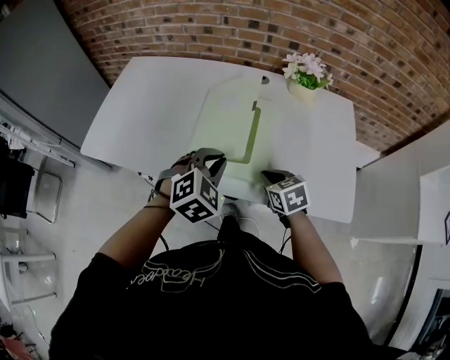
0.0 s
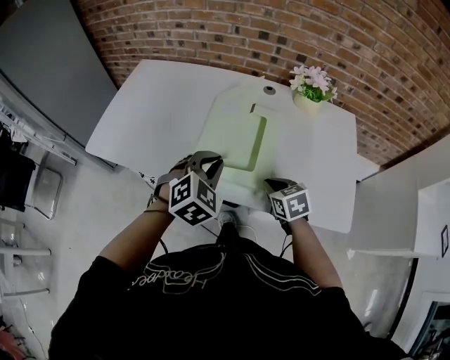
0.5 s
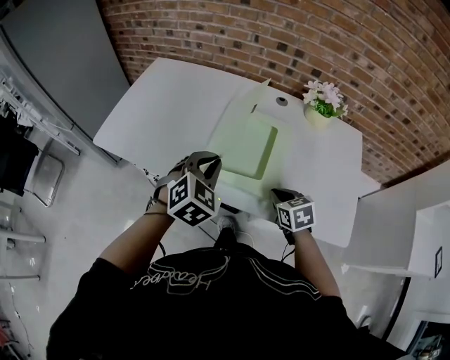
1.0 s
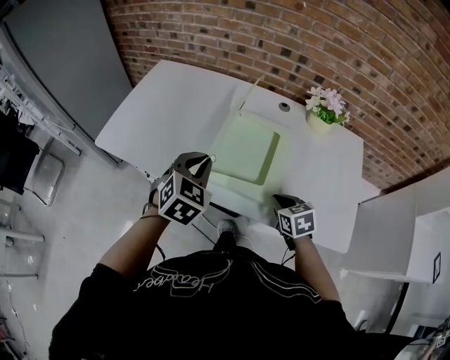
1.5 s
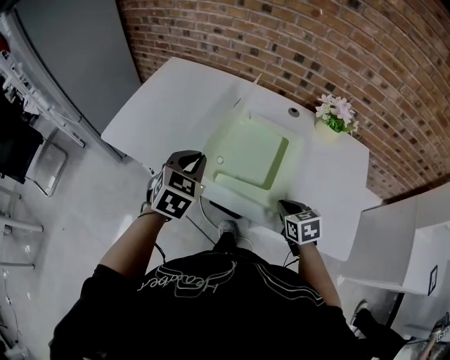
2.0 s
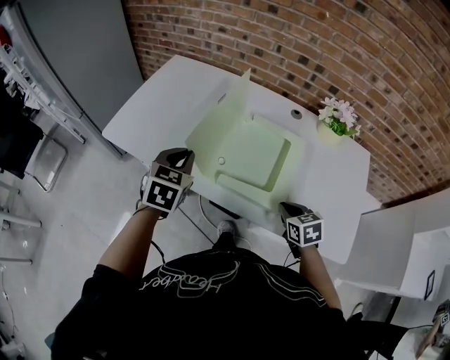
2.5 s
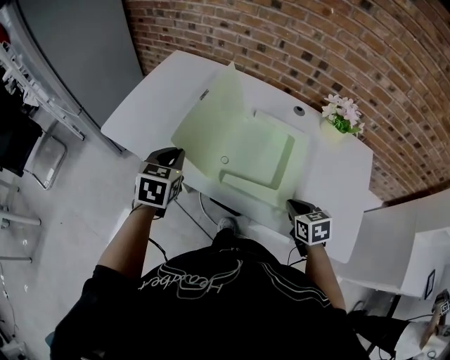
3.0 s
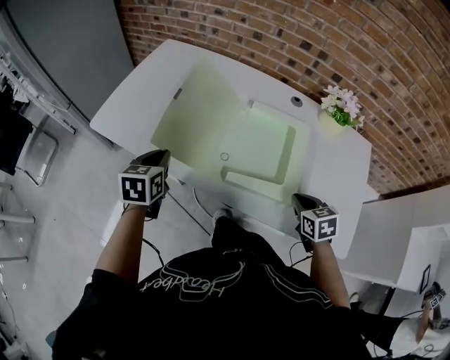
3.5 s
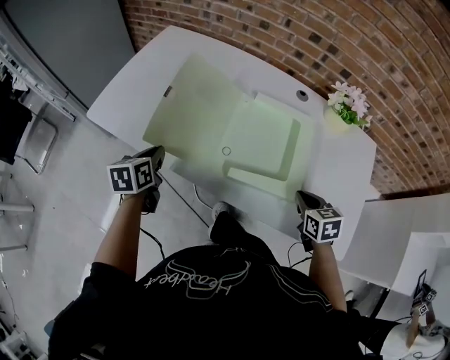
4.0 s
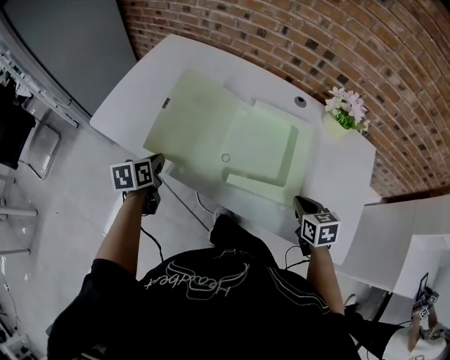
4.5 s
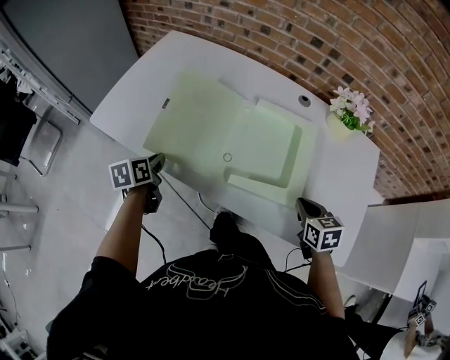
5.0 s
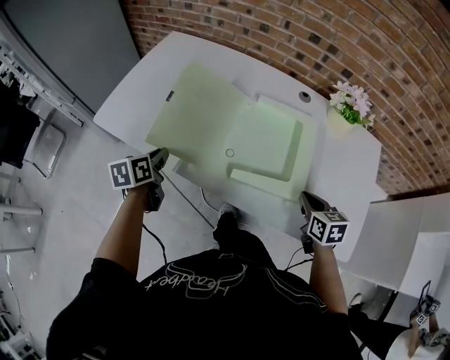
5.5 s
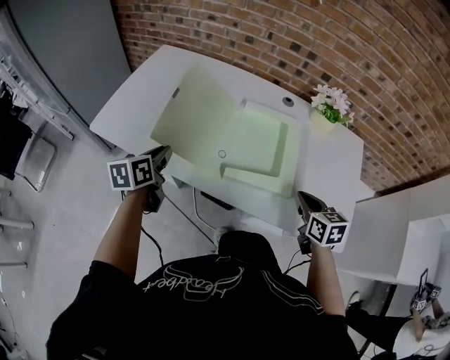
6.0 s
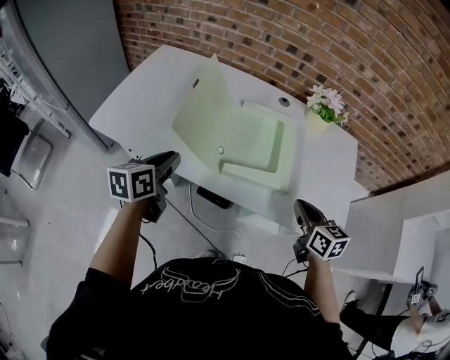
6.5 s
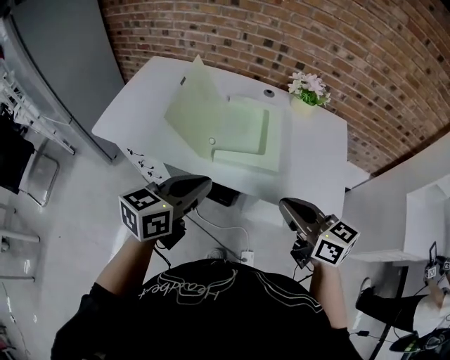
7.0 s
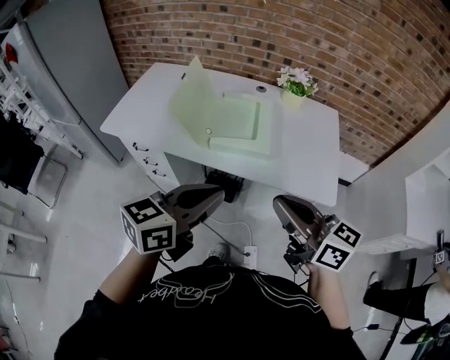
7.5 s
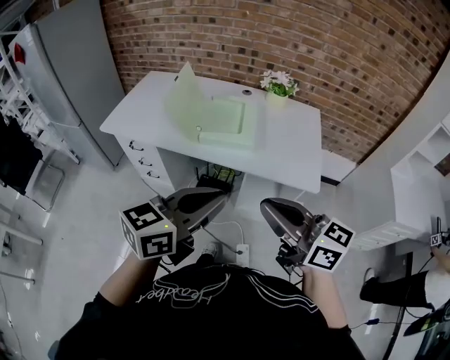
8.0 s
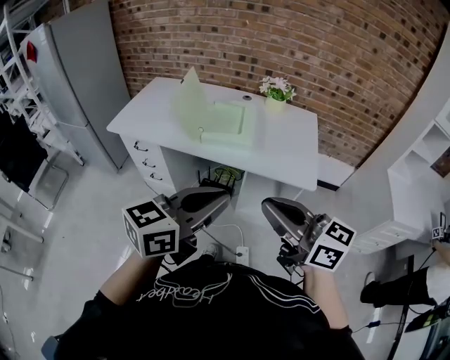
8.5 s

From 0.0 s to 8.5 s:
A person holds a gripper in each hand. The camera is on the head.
From 0.0 s to 2.0 s: The left gripper travels to the left by about 15 cm, and turns by approximately 40 degrees.
From 2.0 s to 4.0 s: The right gripper travels to the right by some 5 cm; the left gripper travels to the left and downward by approximately 15 cm, and twists some 40 degrees counterclockwise, seen from behind.
From 4.0 s to 6.5 s: The right gripper shifts approximately 10 cm upward and backward, and changes its angle by some 30 degrees. Meanwhile the left gripper shifts roughly 10 cm upward and to the right, and swivels some 20 degrees.
From 6.5 s to 8.5 s: The left gripper goes about 50 cm backward, to the right and upward, and turns by roughly 40 degrees, while the right gripper is displaced backward and upward by about 40 cm, and tilts its fingers about 30 degrees upward.

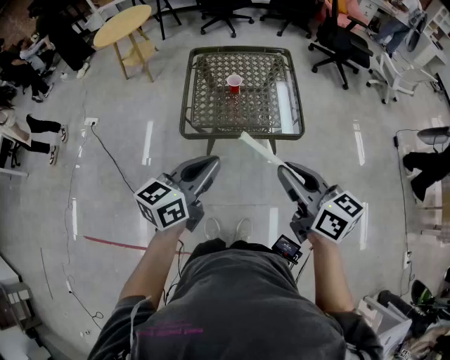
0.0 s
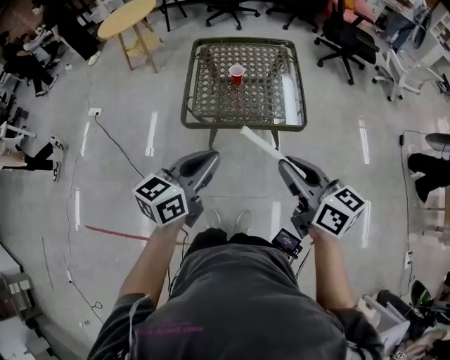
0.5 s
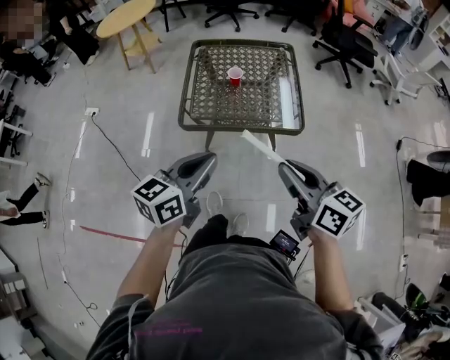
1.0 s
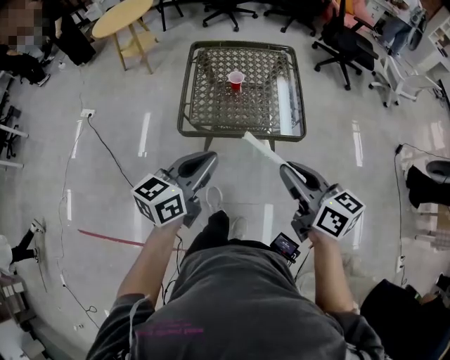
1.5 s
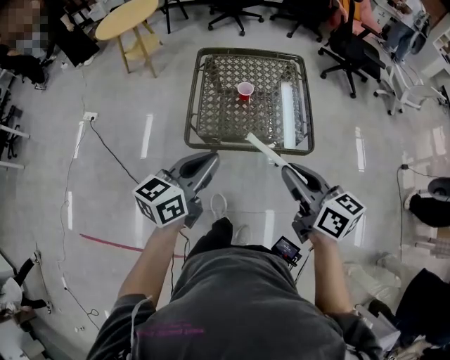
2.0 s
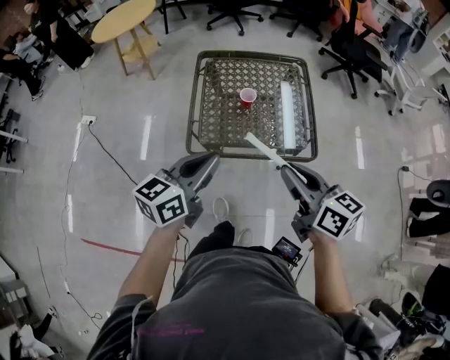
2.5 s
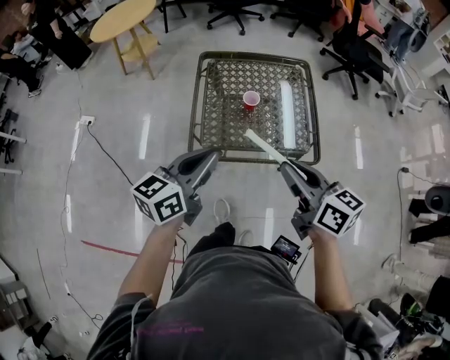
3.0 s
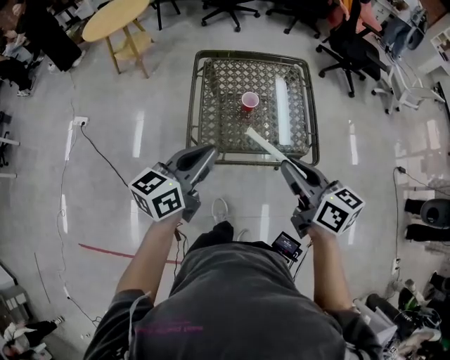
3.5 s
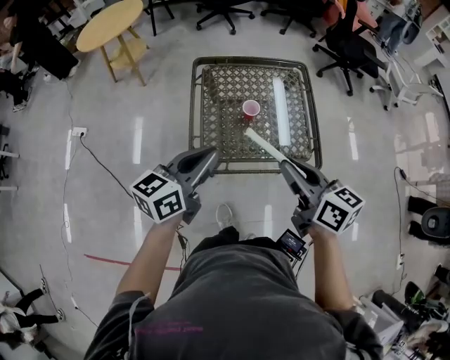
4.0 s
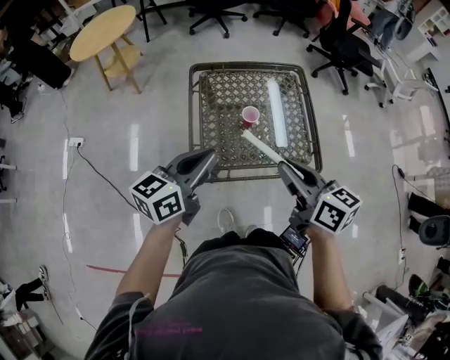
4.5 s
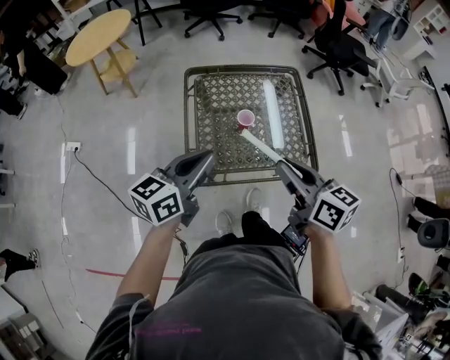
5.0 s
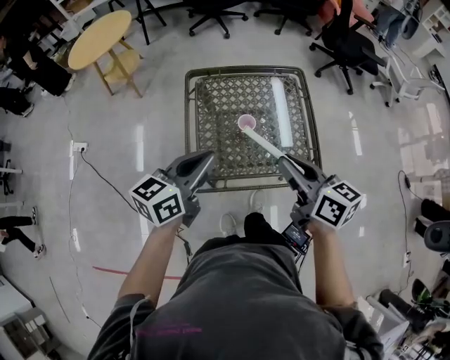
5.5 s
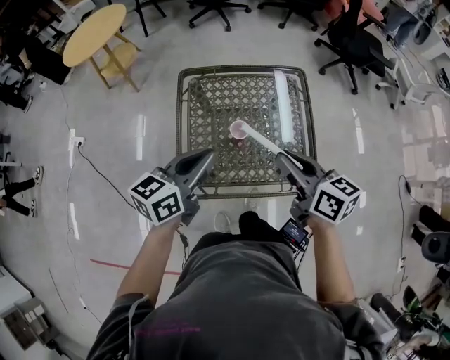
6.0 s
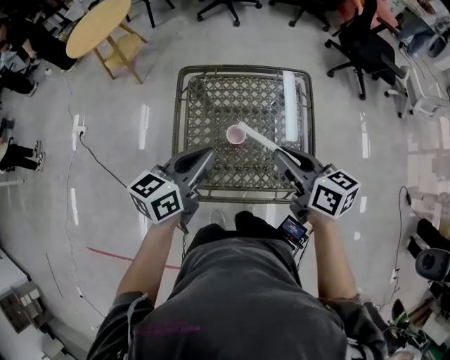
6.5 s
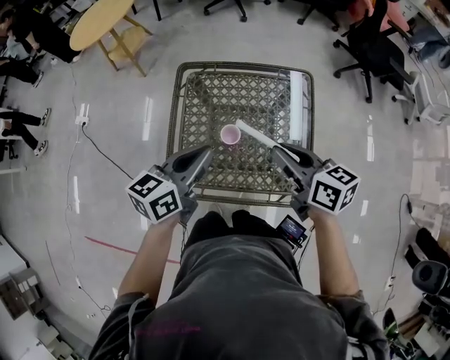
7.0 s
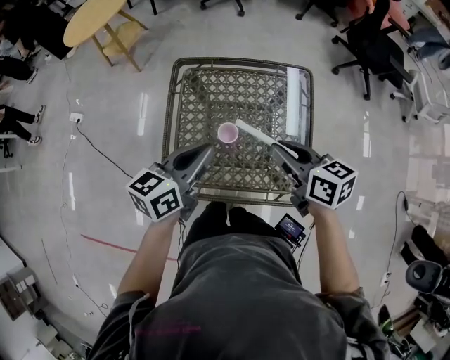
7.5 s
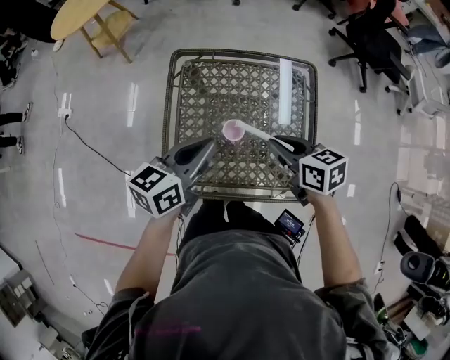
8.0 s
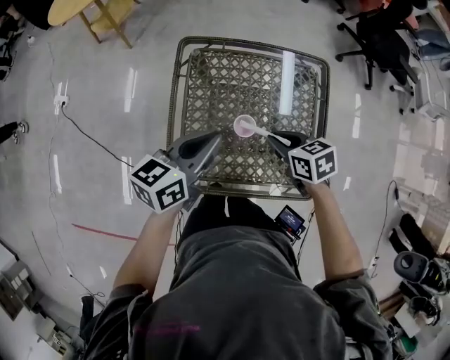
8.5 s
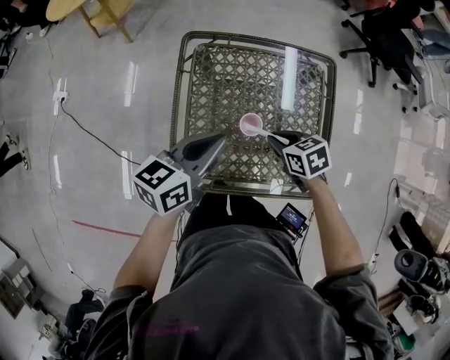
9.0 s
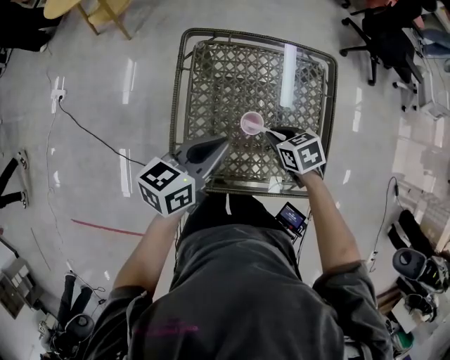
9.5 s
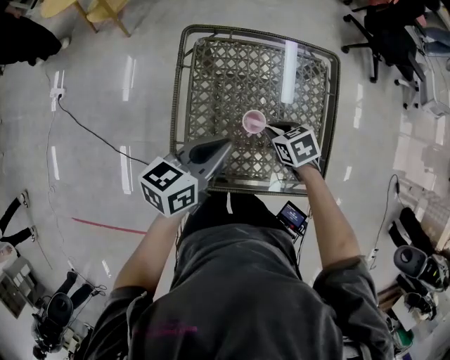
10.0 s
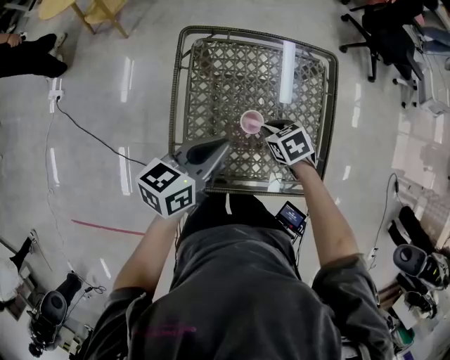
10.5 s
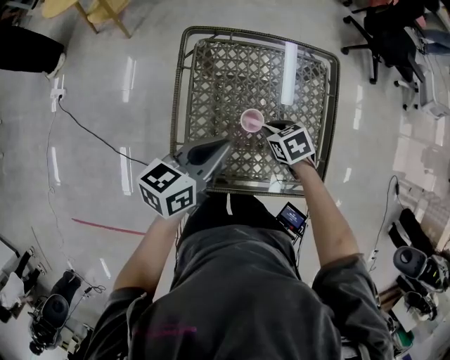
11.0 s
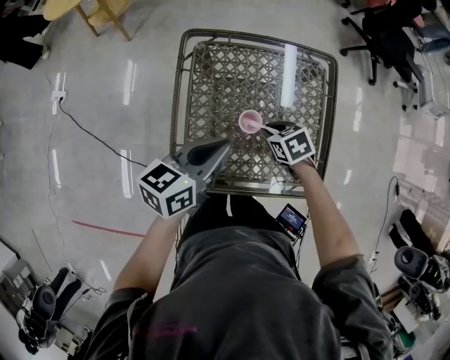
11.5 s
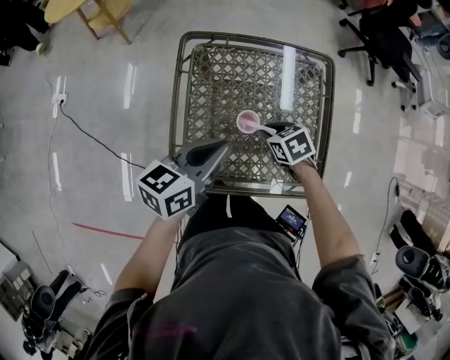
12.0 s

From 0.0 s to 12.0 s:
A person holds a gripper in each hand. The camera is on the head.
From 0.0 s to 2.0 s: The two grippers go roughly 10 cm forward.
From 2.0 s to 4.0 s: Both grippers move forward and to the left, some 15 cm.
From 4.0 s to 6.0 s: Both grippers move forward, about 15 cm.
From 6.0 s to 8.0 s: The right gripper is displaced downward and forward by some 15 cm, and changes its angle by roughly 20 degrees. Meanwhile the left gripper moves forward and downward, roughly 10 cm.
From 8.0 s to 10.0 s: The left gripper shifts by roughly 5 cm. The right gripper moves downward, about 15 cm, and swivels approximately 30 degrees.
From 10.0 s to 12.0 s: There are only small adjustments of the grippers.

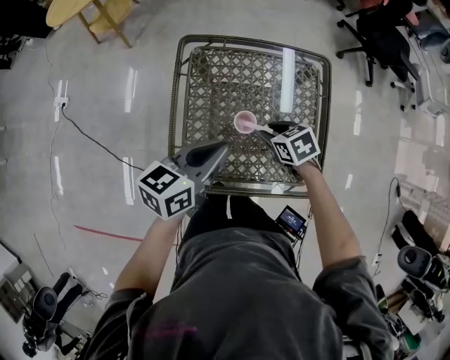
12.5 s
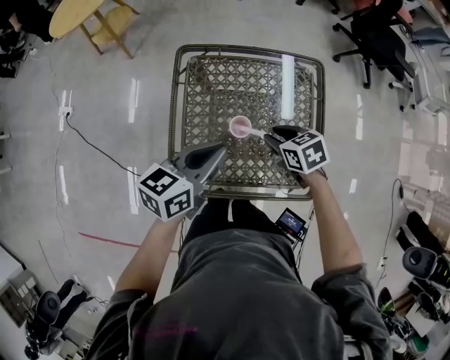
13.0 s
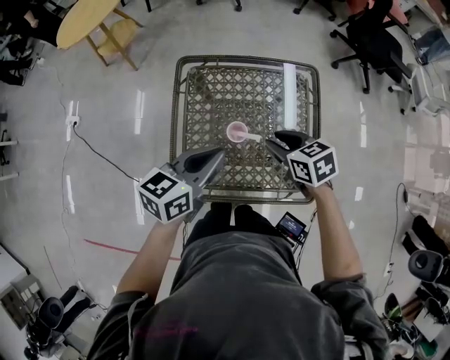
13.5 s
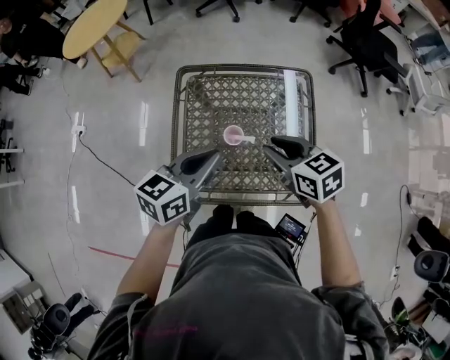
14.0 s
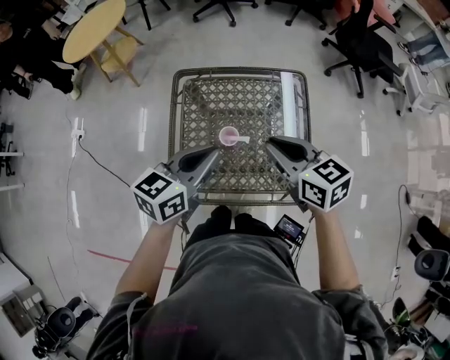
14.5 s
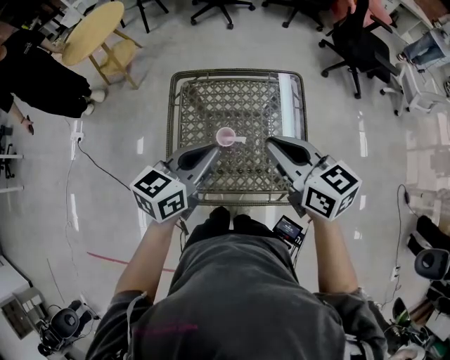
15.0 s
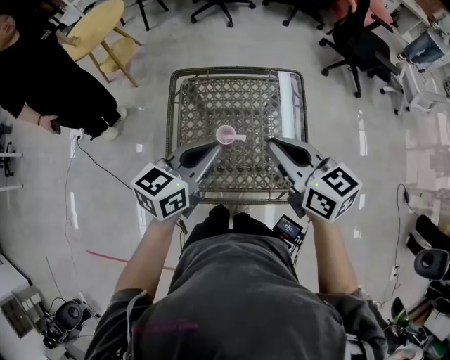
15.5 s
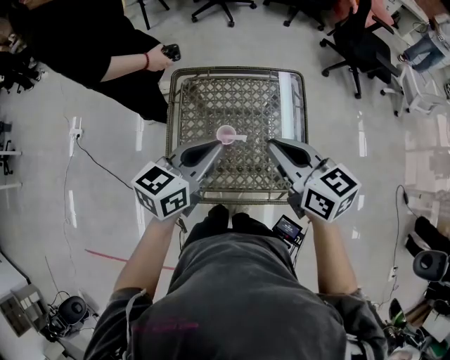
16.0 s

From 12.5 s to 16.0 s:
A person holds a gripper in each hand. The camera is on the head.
From 12.5 s to 14.5 s: The right gripper travels upward by roughly 25 cm, and angles its fingers upward, by roughly 30 degrees. The left gripper travels upward and to the right by roughly 10 cm.
From 14.5 s to 16.0 s: The grippers move only a little.

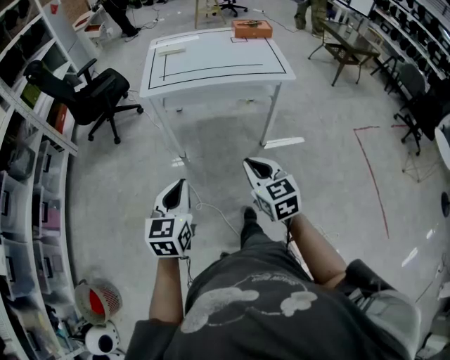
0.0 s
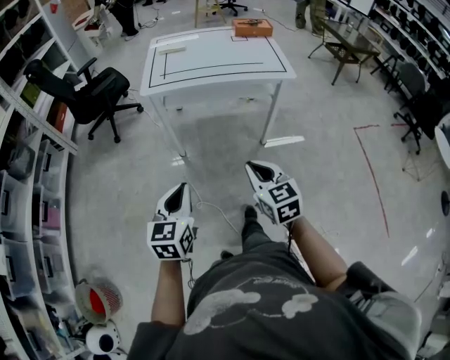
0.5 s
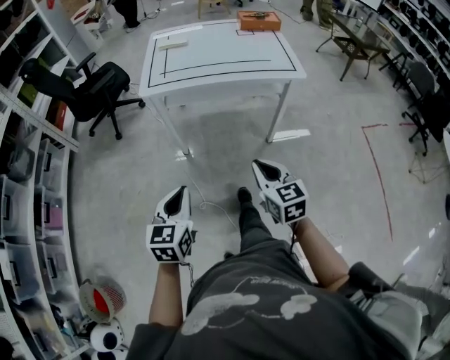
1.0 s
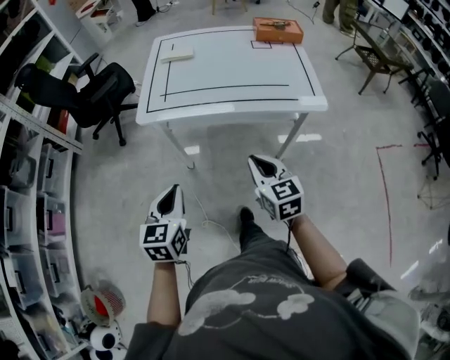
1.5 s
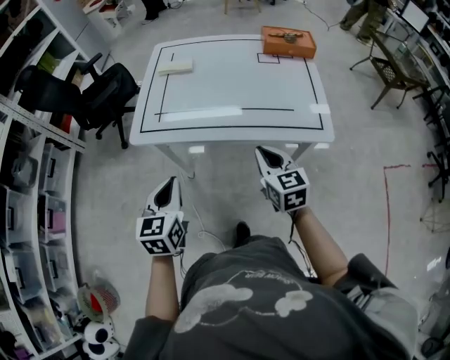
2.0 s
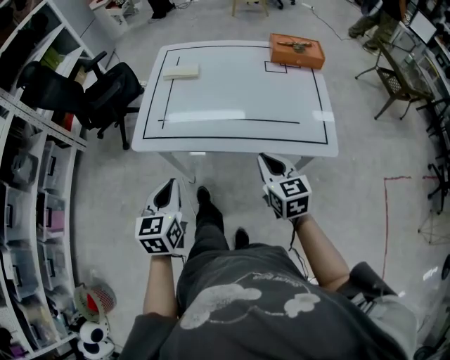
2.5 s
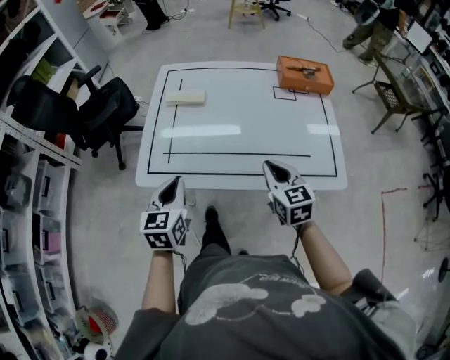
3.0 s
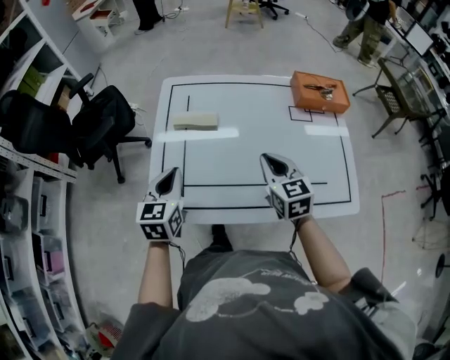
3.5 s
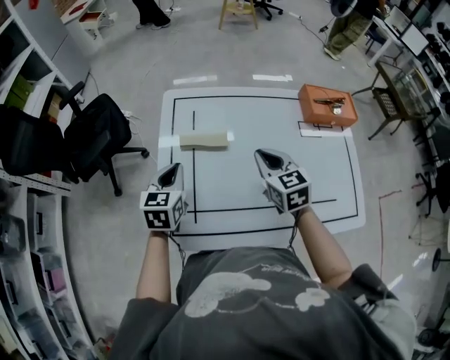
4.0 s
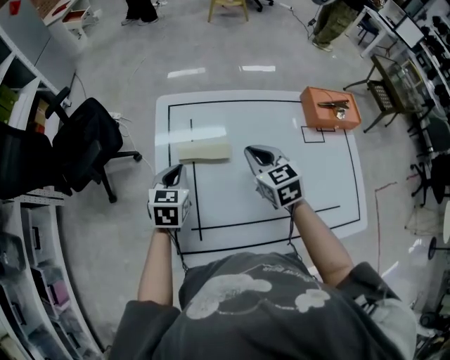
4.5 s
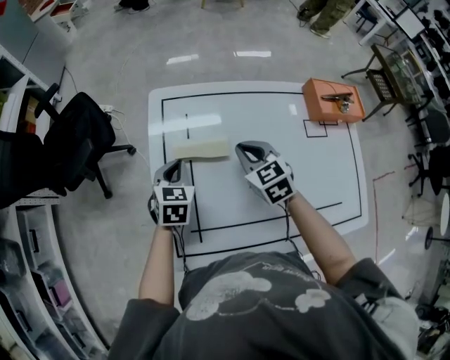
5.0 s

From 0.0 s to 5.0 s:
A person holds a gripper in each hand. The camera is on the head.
From 0.0 s to 2.5 s: The grippers both shift forward by some 40 cm.
From 2.5 s to 5.0 s: The pair of grippers is taken forward, approximately 50 cm. The left gripper turns by about 20 degrees.
